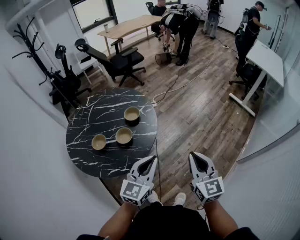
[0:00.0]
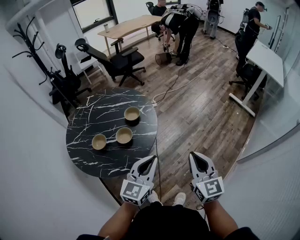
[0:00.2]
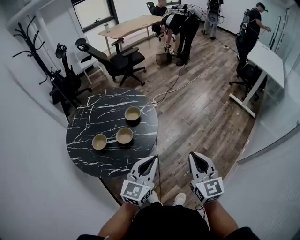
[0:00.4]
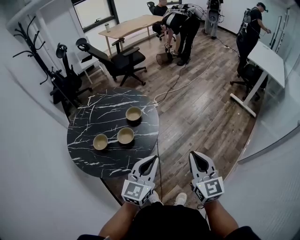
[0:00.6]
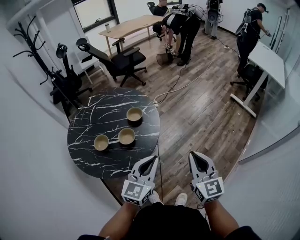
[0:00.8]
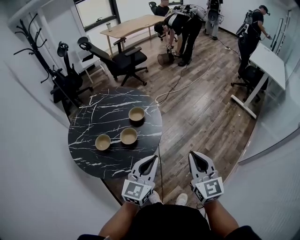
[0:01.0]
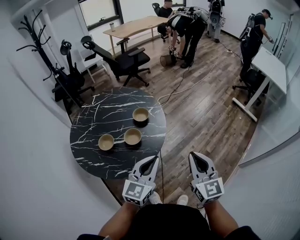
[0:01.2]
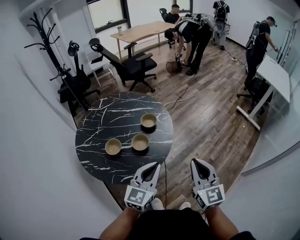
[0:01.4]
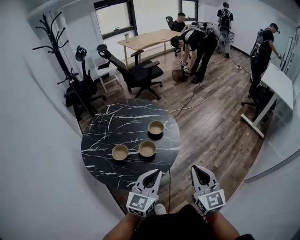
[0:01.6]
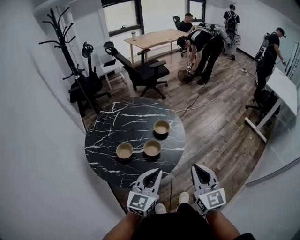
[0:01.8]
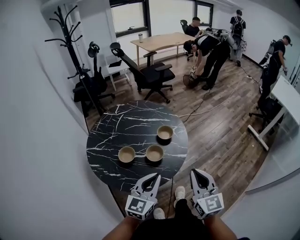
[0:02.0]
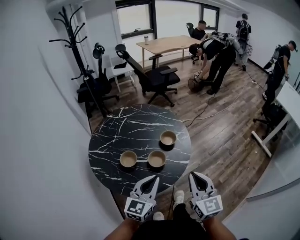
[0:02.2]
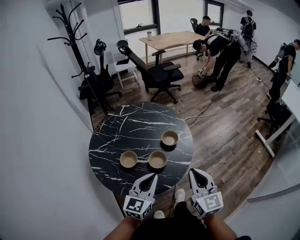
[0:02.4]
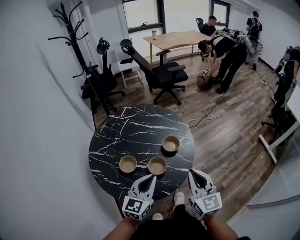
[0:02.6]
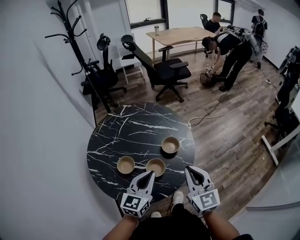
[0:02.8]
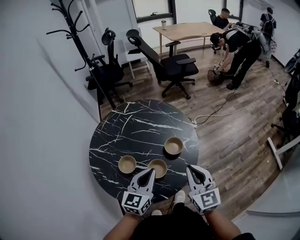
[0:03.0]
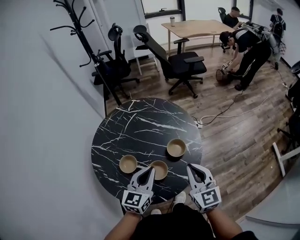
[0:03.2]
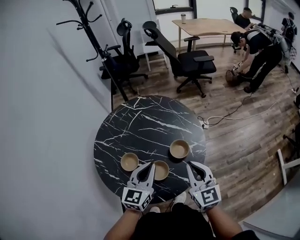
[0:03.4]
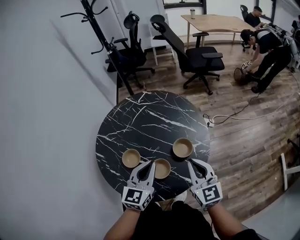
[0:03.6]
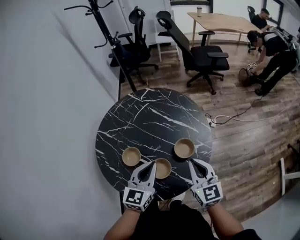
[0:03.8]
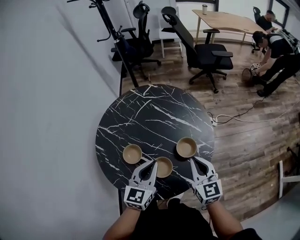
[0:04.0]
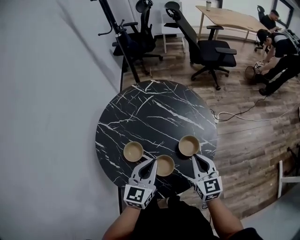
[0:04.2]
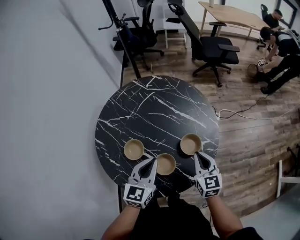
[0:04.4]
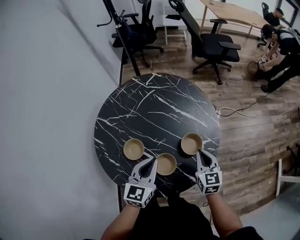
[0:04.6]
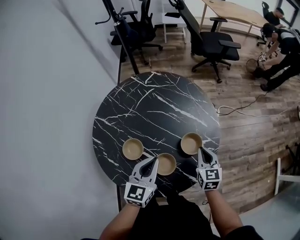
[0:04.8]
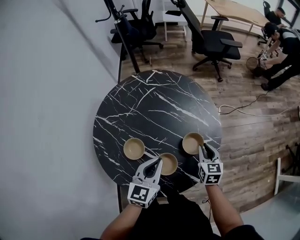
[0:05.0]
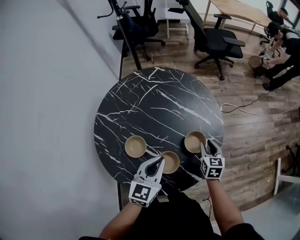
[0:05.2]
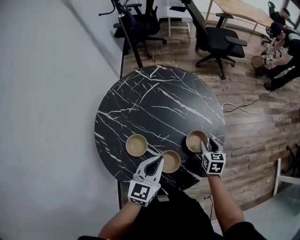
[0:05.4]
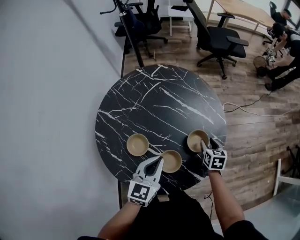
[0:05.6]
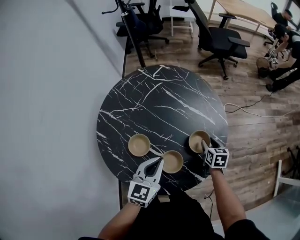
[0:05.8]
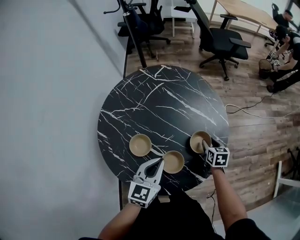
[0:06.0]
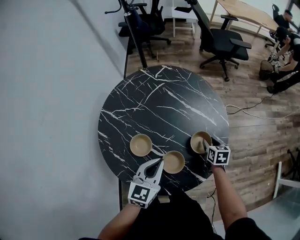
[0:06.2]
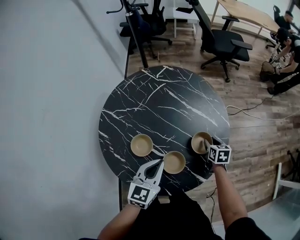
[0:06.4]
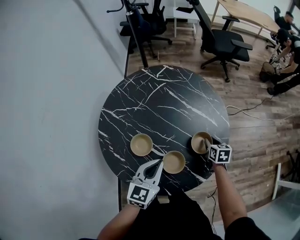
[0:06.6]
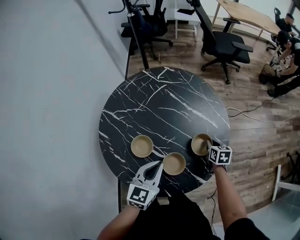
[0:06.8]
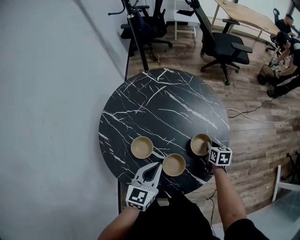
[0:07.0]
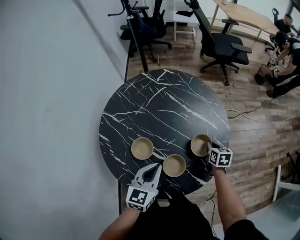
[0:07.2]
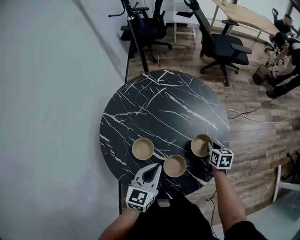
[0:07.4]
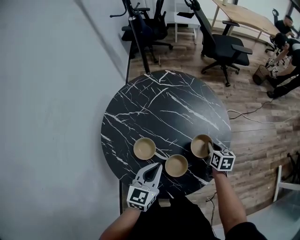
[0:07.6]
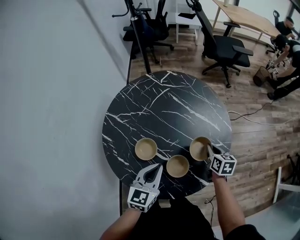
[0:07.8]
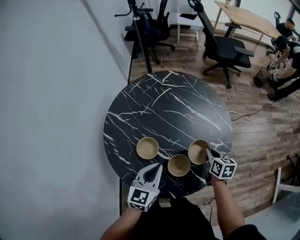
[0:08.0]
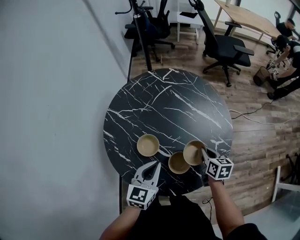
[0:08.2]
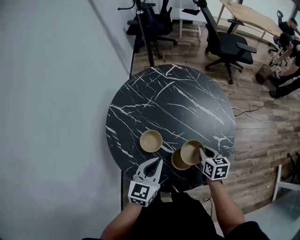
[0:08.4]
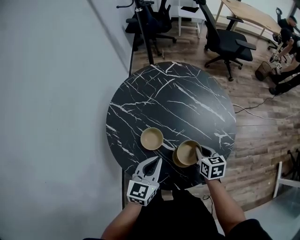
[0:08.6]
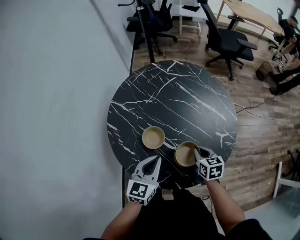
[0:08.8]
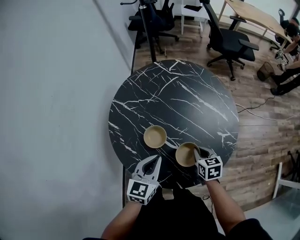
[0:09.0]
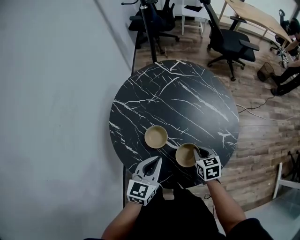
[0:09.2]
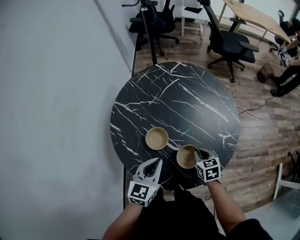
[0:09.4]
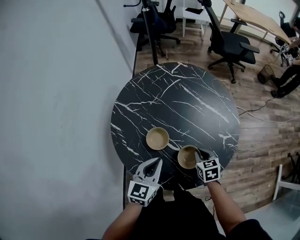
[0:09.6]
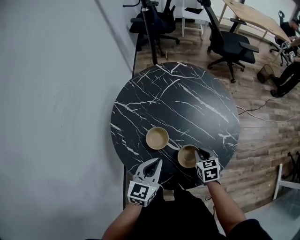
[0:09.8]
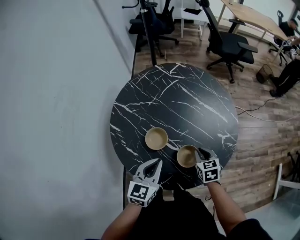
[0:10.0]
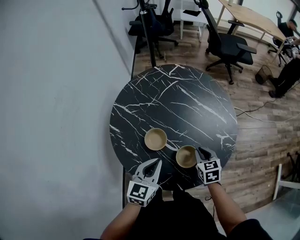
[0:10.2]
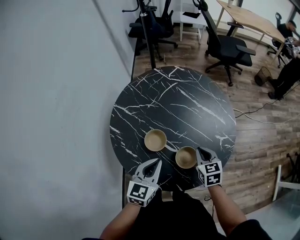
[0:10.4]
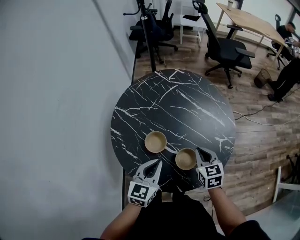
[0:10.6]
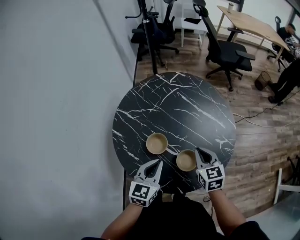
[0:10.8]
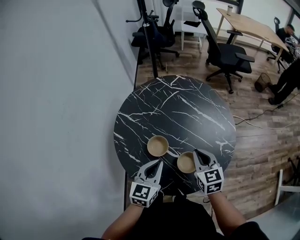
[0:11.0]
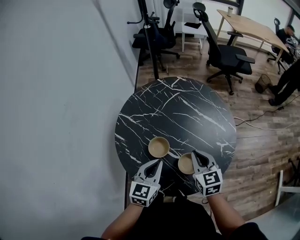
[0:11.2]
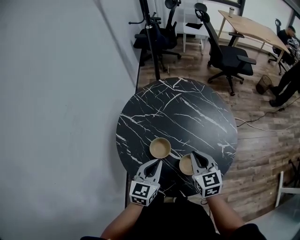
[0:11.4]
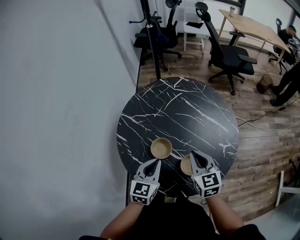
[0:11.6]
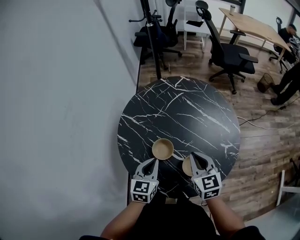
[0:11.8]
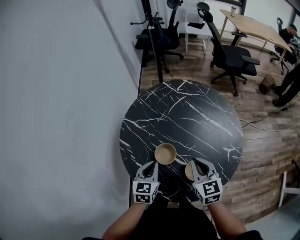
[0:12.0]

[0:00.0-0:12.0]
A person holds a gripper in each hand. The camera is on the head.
0:00.0 to 0:01.6: Both grippers move to the left, roughly 10 cm.
0:01.6 to 0:03.0: The two grippers go some 20 cm forward. The left gripper rotates about 20 degrees; the right gripper turns by about 20 degrees.
0:03.0 to 0:04.4: The right gripper shifts approximately 20 cm downward and forward. Meanwhile the left gripper goes roughly 5 cm forward.
0:04.4 to 0:06.0: The right gripper moves downward and forward, about 15 cm, swivels some 30 degrees, and opens.
0:06.0 to 0:07.6: The right gripper closes.
0:07.6 to 0:09.0: The left gripper shifts approximately 5 cm to the left. The right gripper goes roughly 15 cm to the left and backward.
0:09.0 to 0:10.4: There are only small adjustments of the grippers.
0:10.4 to 0:12.0: The right gripper travels upward and to the left by approximately 10 cm. The left gripper goes approximately 10 cm to the left and downward.

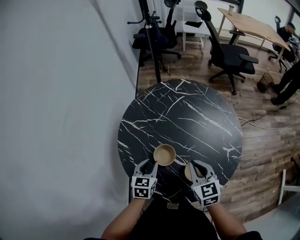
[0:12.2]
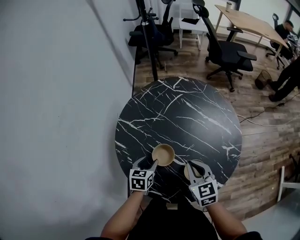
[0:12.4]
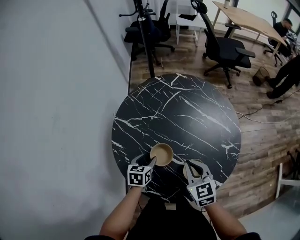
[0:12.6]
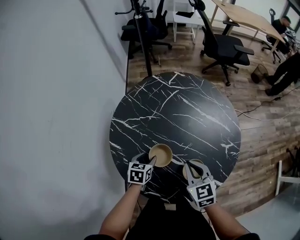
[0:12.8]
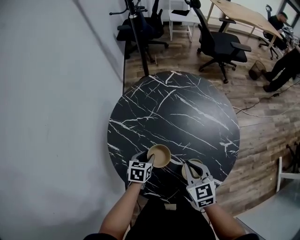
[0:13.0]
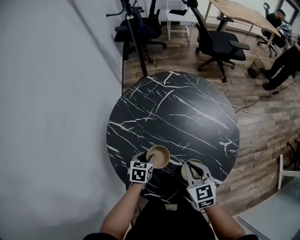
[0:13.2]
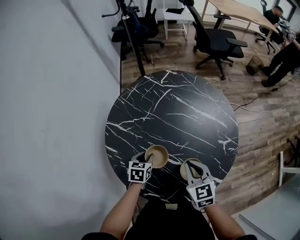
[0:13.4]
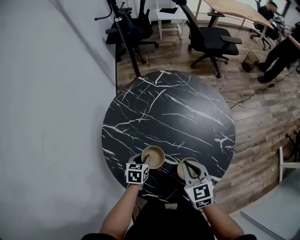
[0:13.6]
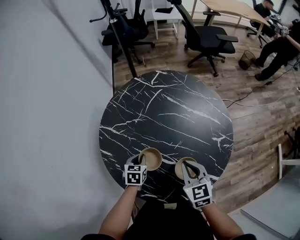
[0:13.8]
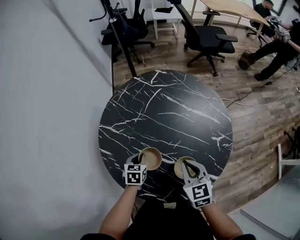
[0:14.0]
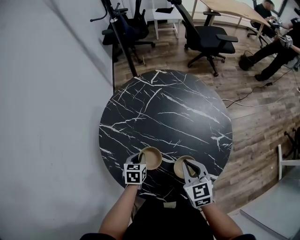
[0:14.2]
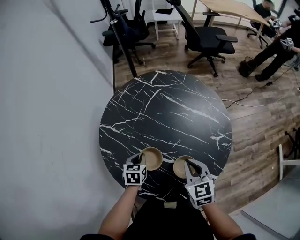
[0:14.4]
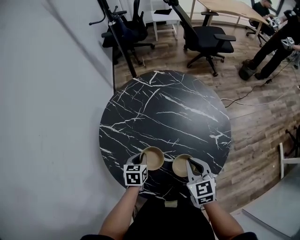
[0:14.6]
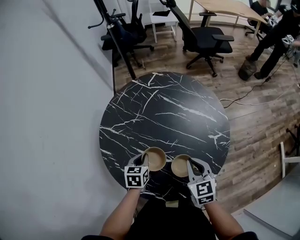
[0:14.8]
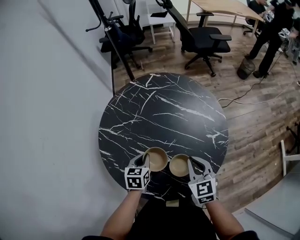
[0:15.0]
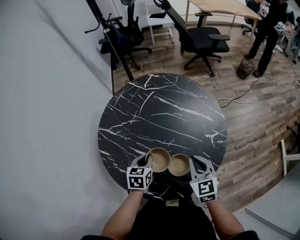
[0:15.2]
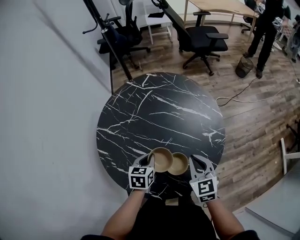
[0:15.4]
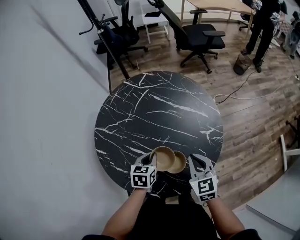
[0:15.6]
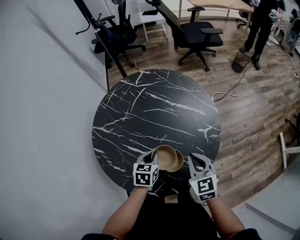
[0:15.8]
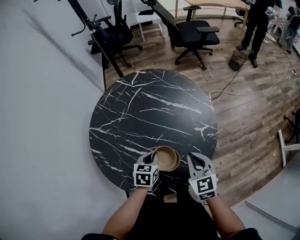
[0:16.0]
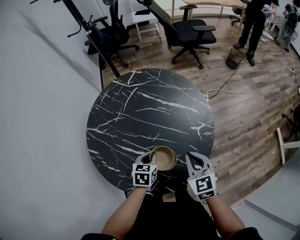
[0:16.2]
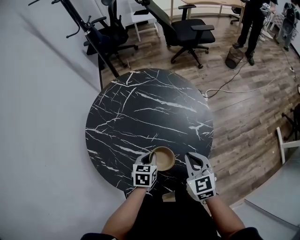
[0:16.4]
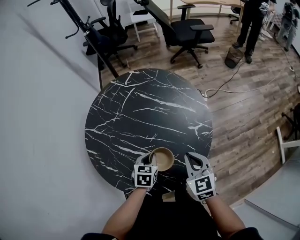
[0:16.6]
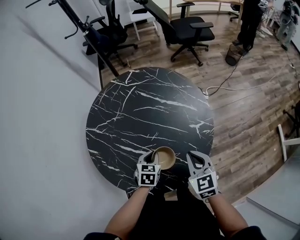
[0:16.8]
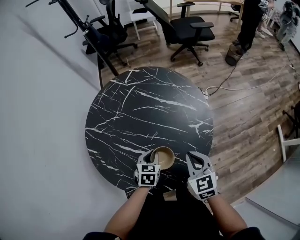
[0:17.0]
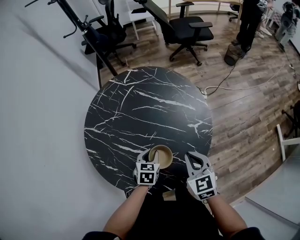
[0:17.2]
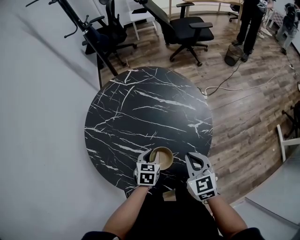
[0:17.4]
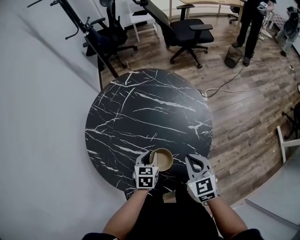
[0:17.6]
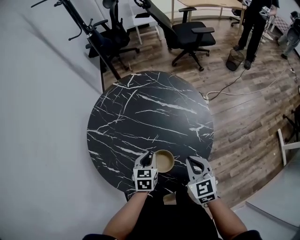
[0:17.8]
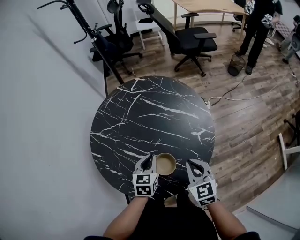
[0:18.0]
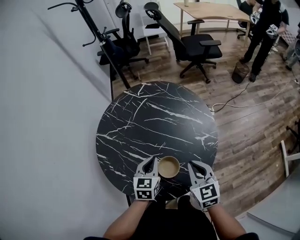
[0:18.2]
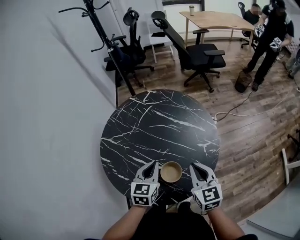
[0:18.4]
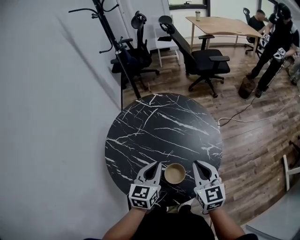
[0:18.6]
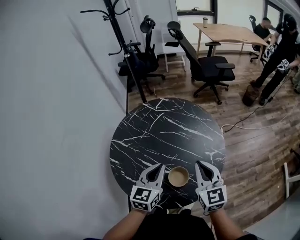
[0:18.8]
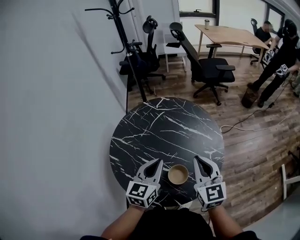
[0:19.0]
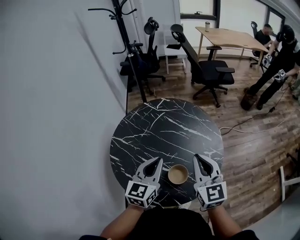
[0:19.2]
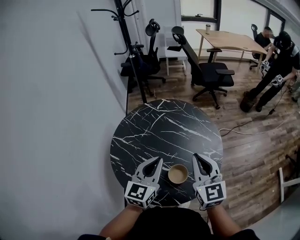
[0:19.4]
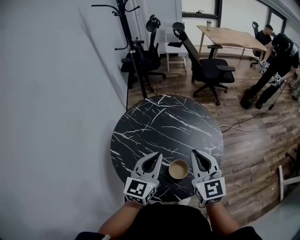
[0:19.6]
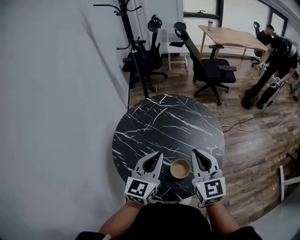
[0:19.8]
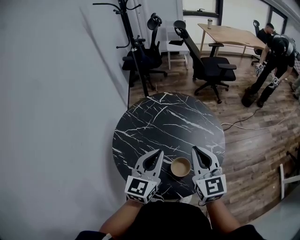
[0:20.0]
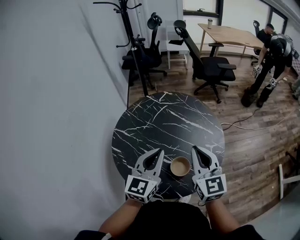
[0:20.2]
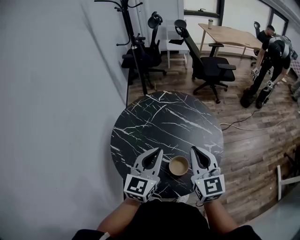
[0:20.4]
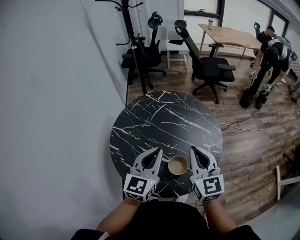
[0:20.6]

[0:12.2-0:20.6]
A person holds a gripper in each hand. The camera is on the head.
0:12.2 to 0:13.6: The left gripper heads downward and forward, covering roughly 10 cm, and opens, then closes again.
0:13.6 to 0:15.0: The right gripper is displaced to the right by about 5 cm. Meanwhile the left gripper is displaced upward and to the right by approximately 10 cm, and closes up.
0:15.0 to 0:16.4: The left gripper heads to the right, covering approximately 10 cm, while the right gripper shifts roughly 10 cm to the right.
0:16.4 to 0:17.8: The grippers move only a little.
0:17.8 to 0:19.2: The two grippers go approximately 20 cm upward. The left gripper angles its fingers upward, by some 30 degrees; the right gripper rotates roughly 20 degrees.
0:19.2 to 0:20.6: The grippers move only a little.

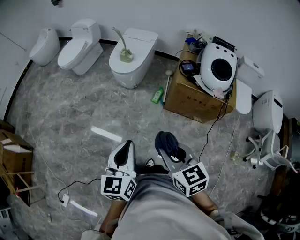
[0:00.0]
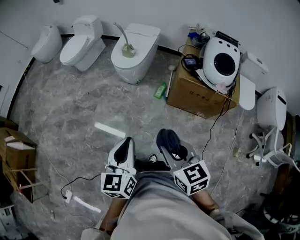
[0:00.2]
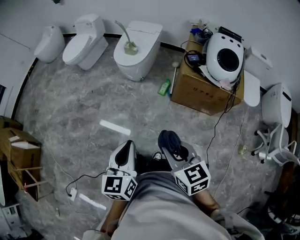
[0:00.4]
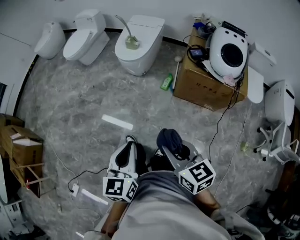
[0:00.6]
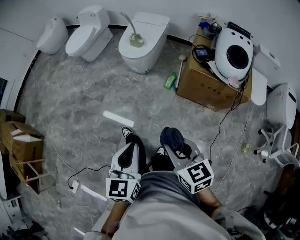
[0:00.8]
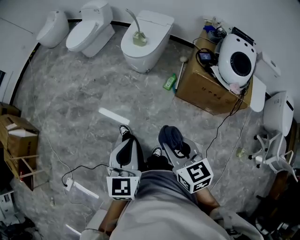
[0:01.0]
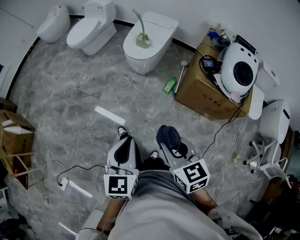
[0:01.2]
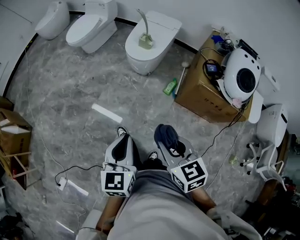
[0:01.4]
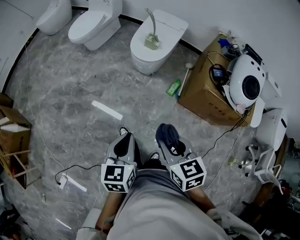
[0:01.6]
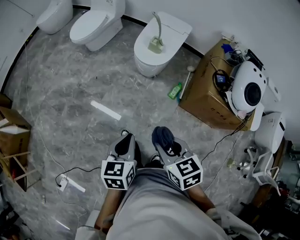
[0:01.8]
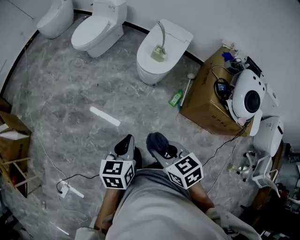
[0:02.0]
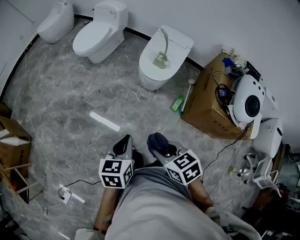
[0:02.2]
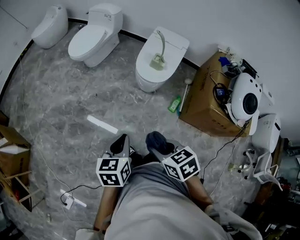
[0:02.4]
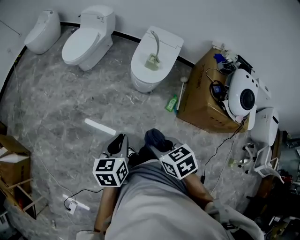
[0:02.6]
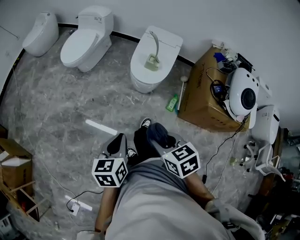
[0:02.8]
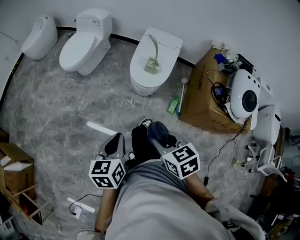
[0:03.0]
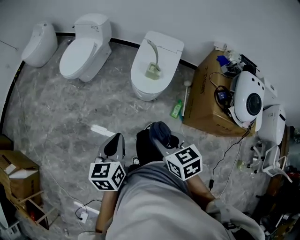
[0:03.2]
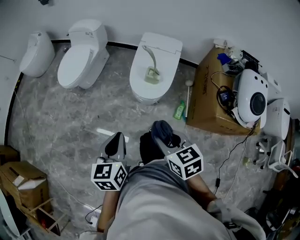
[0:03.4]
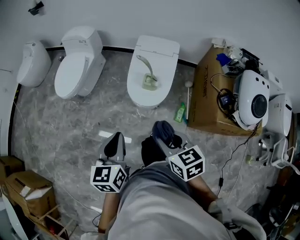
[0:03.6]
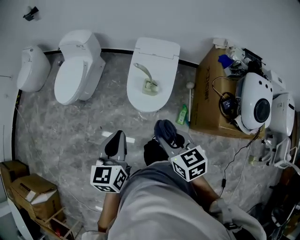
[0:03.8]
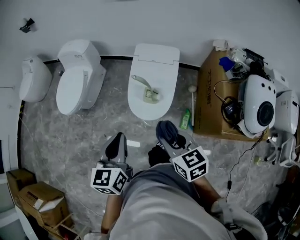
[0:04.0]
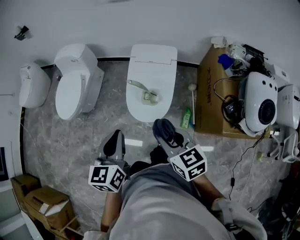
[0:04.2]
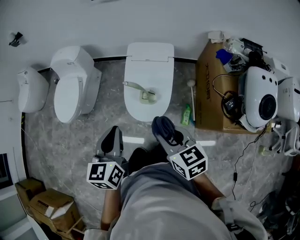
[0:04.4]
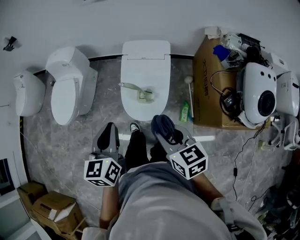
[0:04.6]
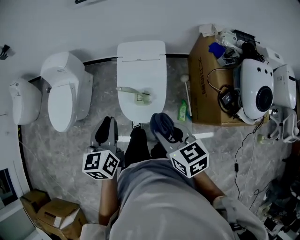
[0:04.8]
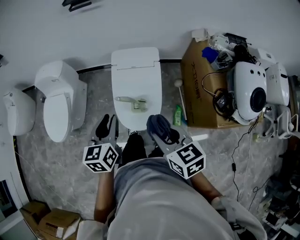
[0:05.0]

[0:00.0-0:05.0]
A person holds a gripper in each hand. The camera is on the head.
0:00.0 to 0:01.6: The right gripper is displaced forward and to the left by roughly 20 cm. The left gripper is displaced forward, to the left and downward by approximately 20 cm.
0:01.6 to 0:03.4: The two grippers go approximately 35 cm forward.
0:03.4 to 0:05.0: Both grippers travel together forward, roughly 35 cm.
